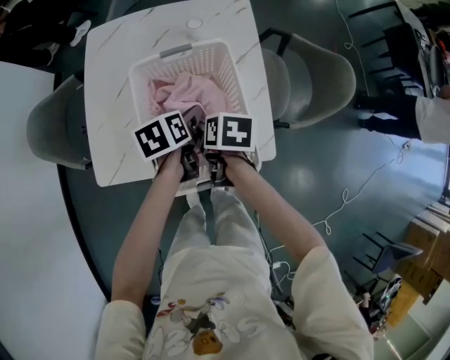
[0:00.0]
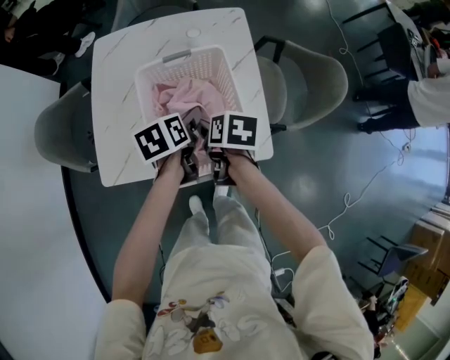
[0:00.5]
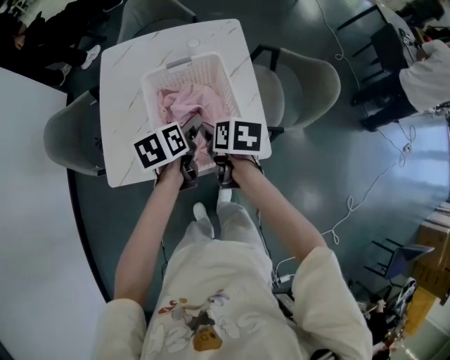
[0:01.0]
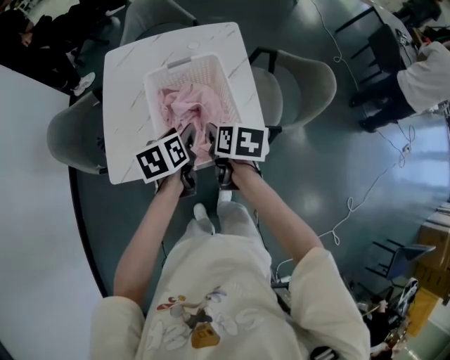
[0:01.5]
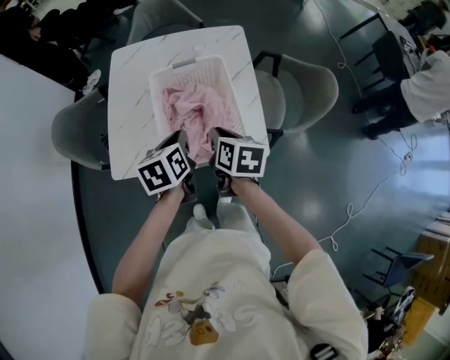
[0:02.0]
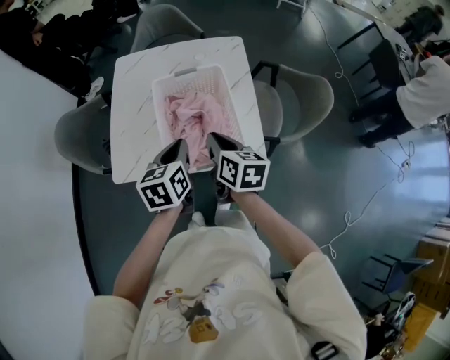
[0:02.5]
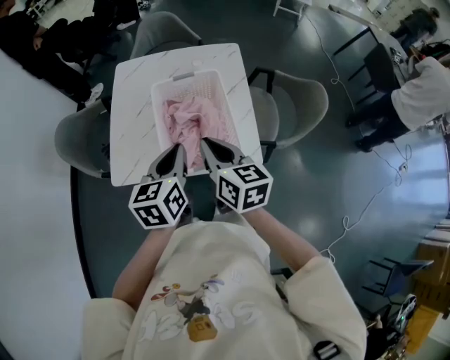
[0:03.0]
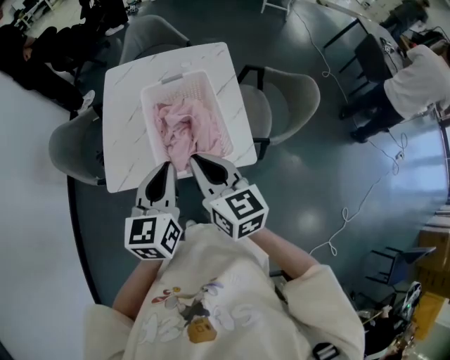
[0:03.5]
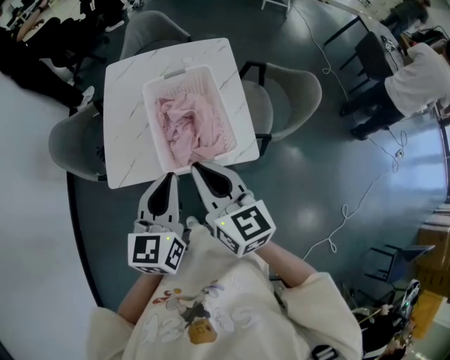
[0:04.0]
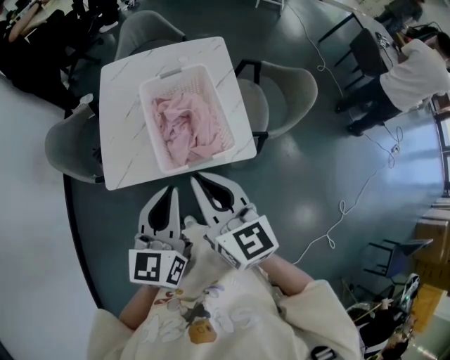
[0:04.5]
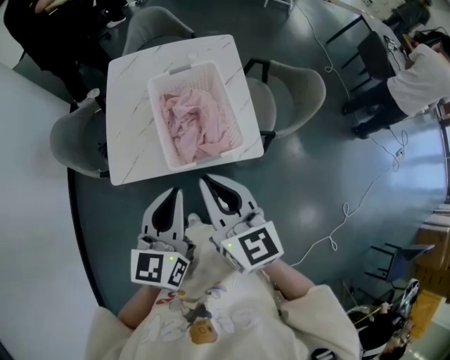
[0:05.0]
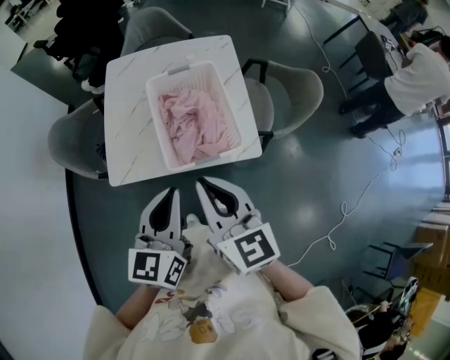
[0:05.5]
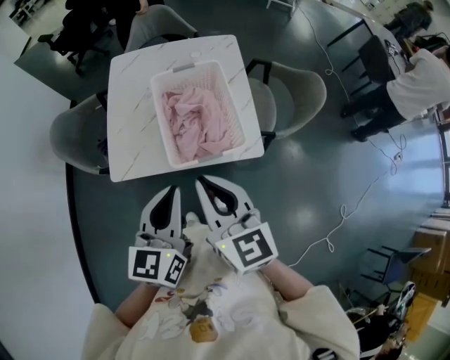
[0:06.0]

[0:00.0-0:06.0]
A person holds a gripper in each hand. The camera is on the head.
0:00.0 to 0:02.0: The grippers both shift upward and backward by about 15 cm. The right gripper changes its angle by roughly 20 degrees, and closes up. The left gripper closes its fingers.
0:02.0 to 0:04.0: The two grippers go some 20 cm upward and backward. The left gripper turns by about 30 degrees. Meanwhile the right gripper swivels approximately 40 degrees.
0:04.0 to 0:06.0: The grippers make only small movements.

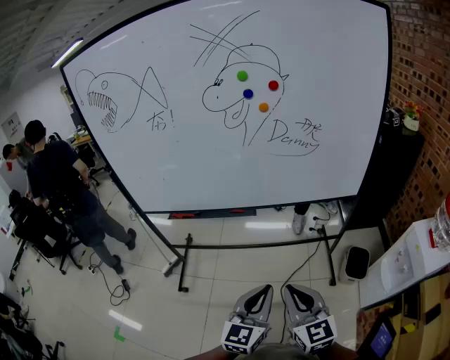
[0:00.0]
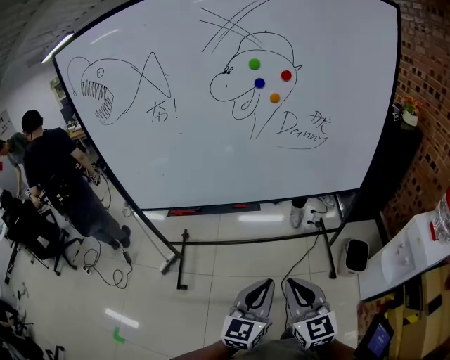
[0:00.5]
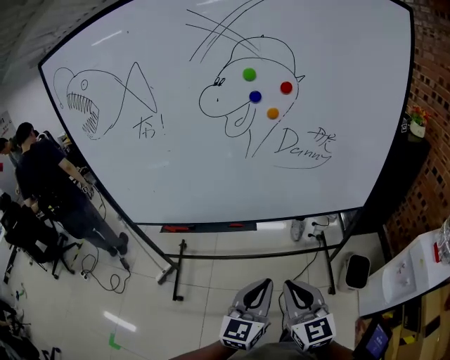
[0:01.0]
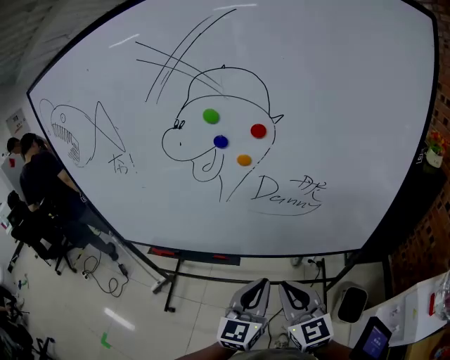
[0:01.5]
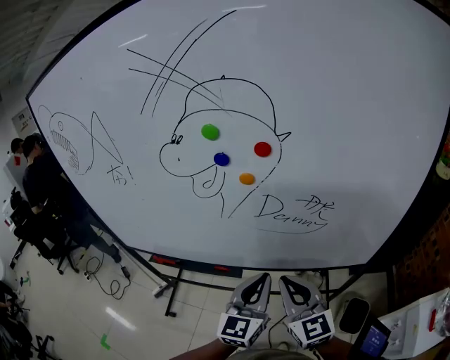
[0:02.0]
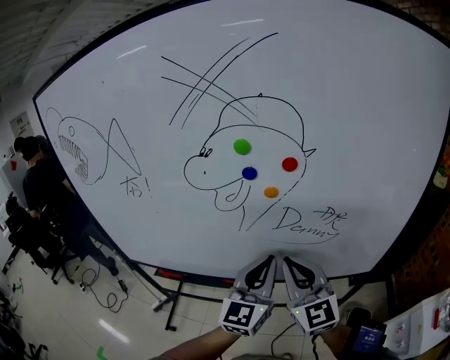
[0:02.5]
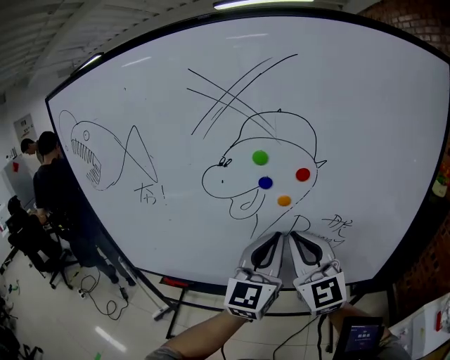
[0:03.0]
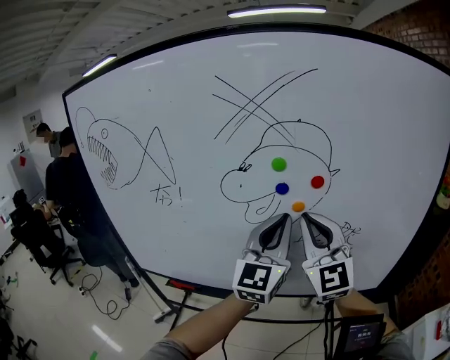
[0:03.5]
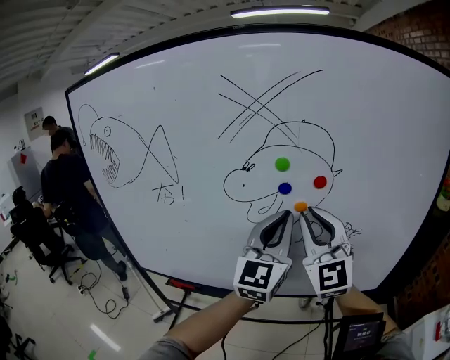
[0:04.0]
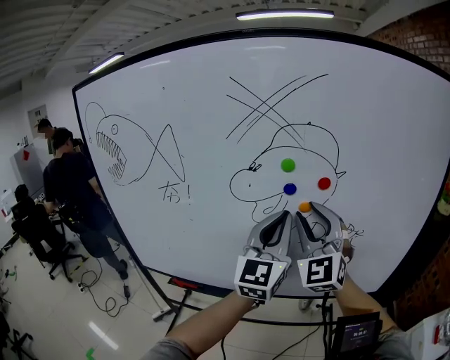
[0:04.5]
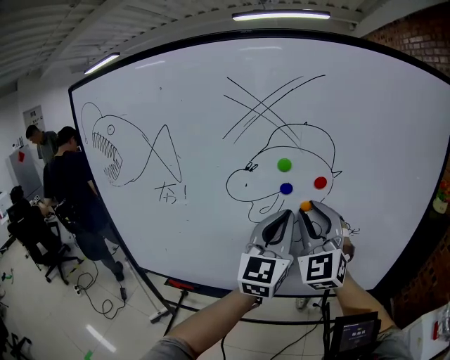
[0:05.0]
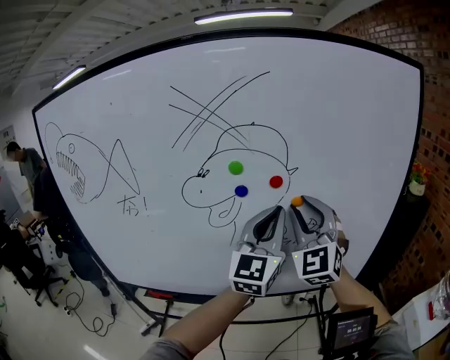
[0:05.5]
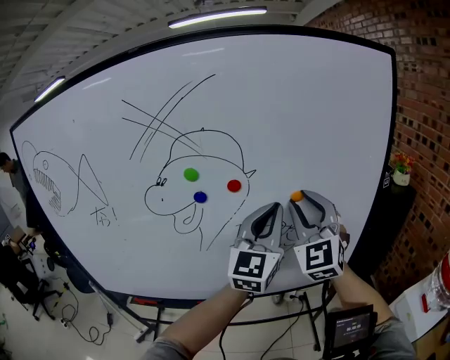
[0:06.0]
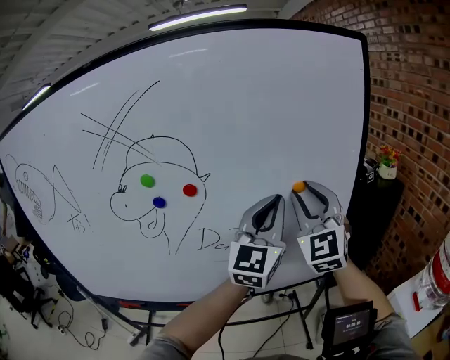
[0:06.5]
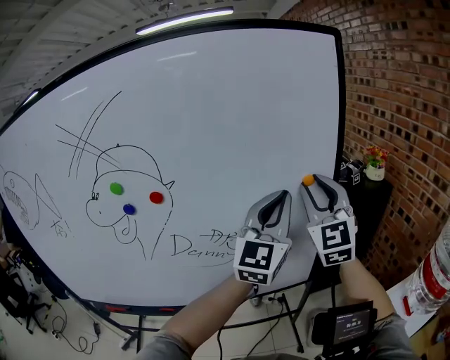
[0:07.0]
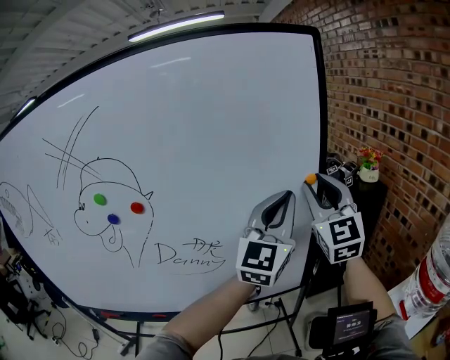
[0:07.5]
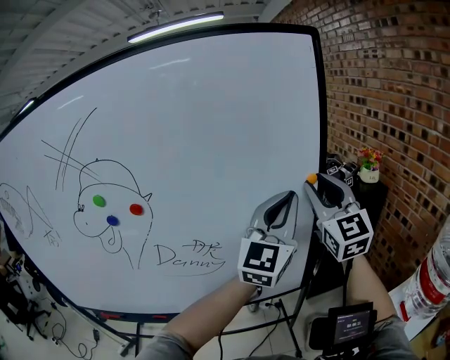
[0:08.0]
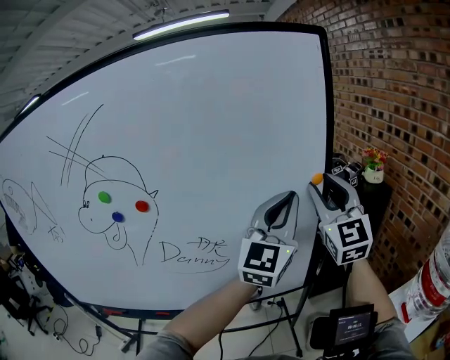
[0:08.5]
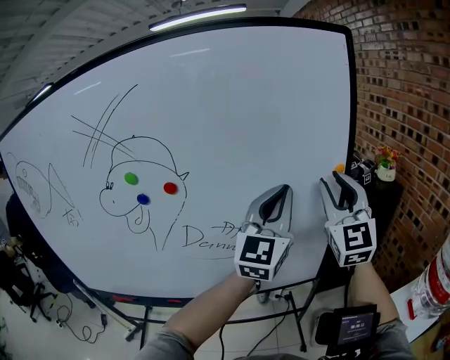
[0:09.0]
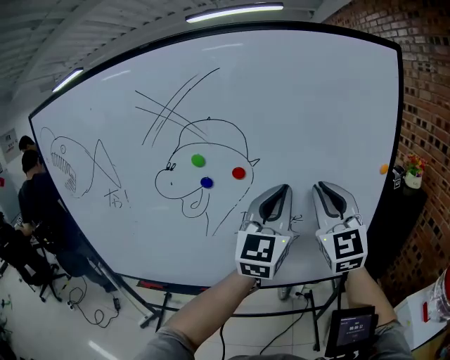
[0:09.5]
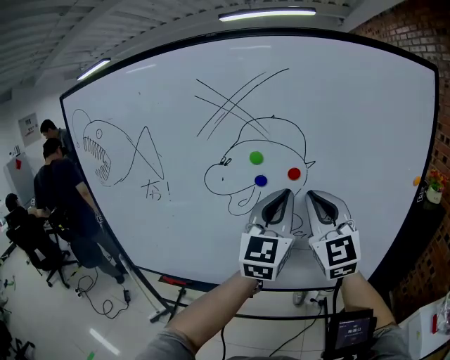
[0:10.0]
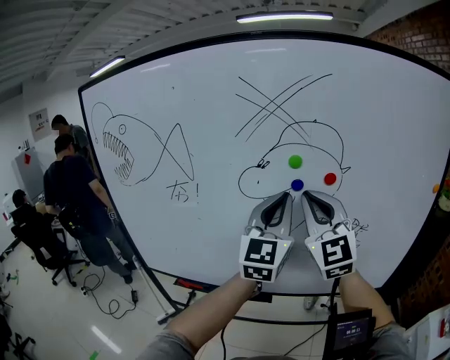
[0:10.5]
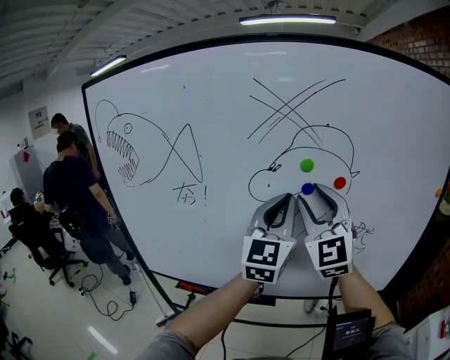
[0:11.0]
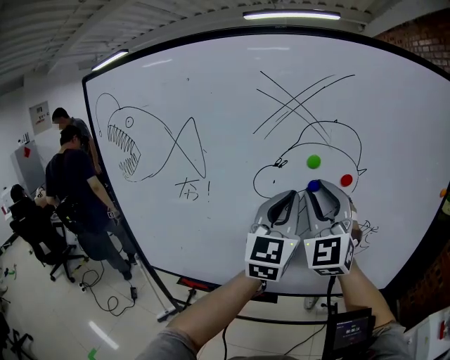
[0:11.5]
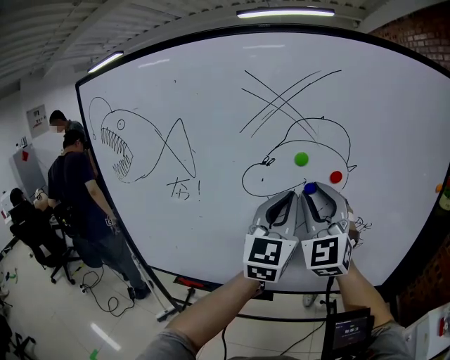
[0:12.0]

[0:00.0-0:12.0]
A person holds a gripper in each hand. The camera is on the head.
0:00.0 to 0:02.0: Both grippers travel together forward, some 35 cm.
0:02.0 to 0:04.0: Both grippers travel together upward, about 20 cm. The left gripper rotates roughly 20 degrees, while the right gripper rotates roughly 40 degrees.
0:04.0 to 0:06.0: Both grippers move to the right, roughly 15 cm. The right gripper turns by roughly 20 degrees.
0:06.0 to 0:08.0: The grippers both shift to the right by some 25 cm.
0:08.0 to 0:10.0: The grippers both shift to the left by some 35 cm. The right gripper closes up; the left gripper swivels about 20 degrees.
0:10.0 to 0:12.0: The two grippers go some 10 cm to the left. The right gripper opens up.

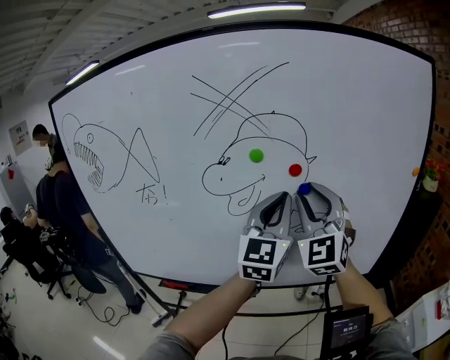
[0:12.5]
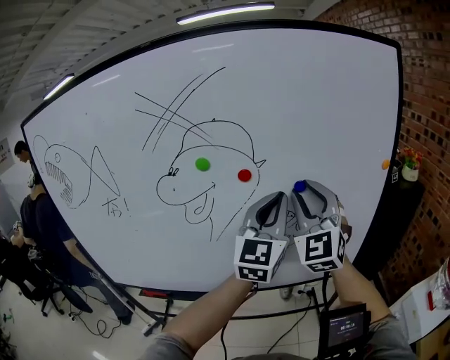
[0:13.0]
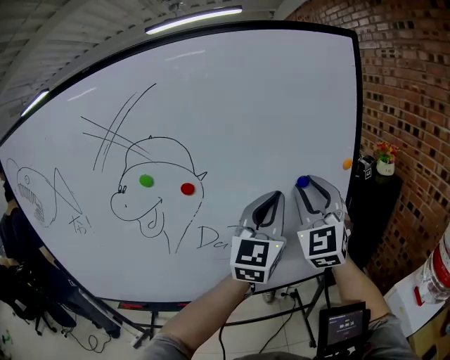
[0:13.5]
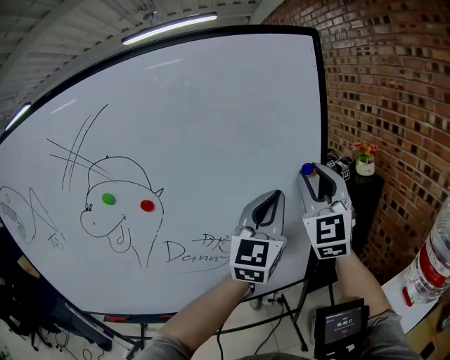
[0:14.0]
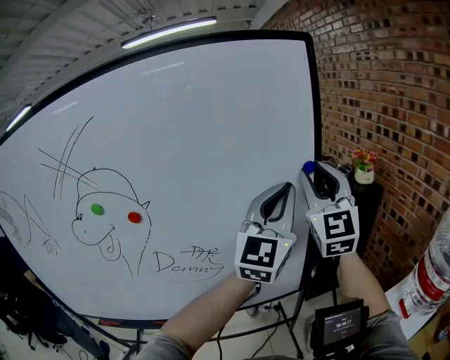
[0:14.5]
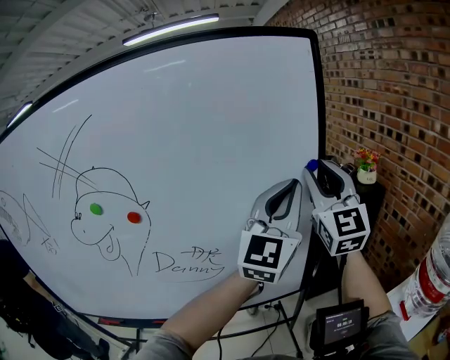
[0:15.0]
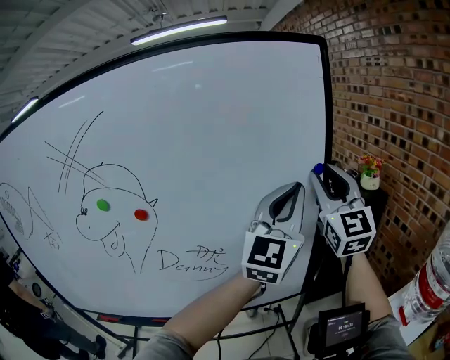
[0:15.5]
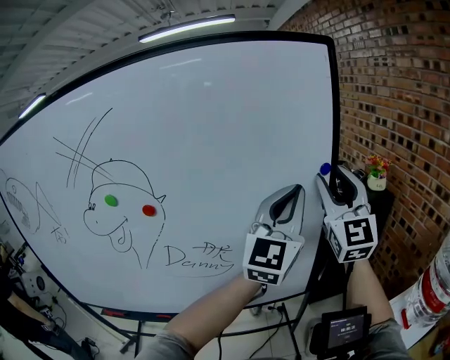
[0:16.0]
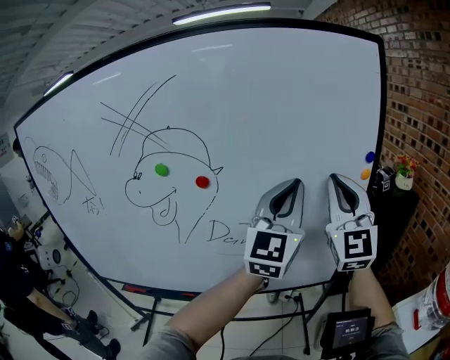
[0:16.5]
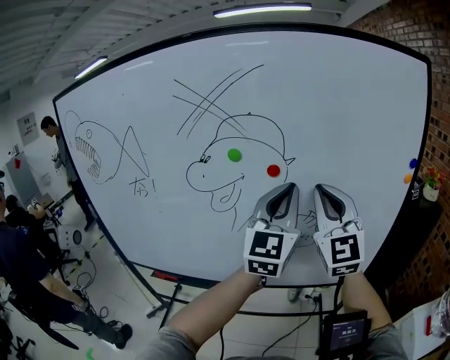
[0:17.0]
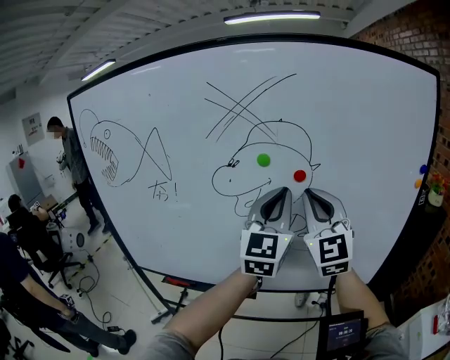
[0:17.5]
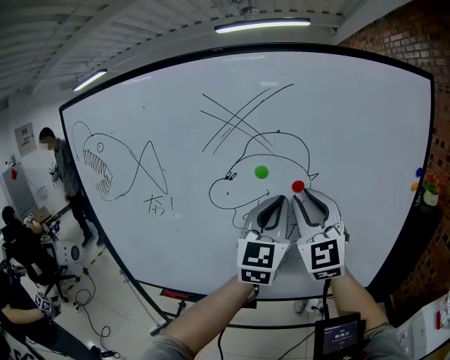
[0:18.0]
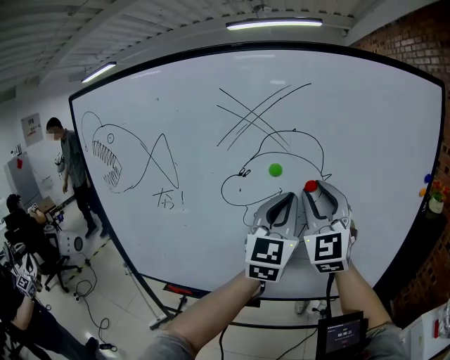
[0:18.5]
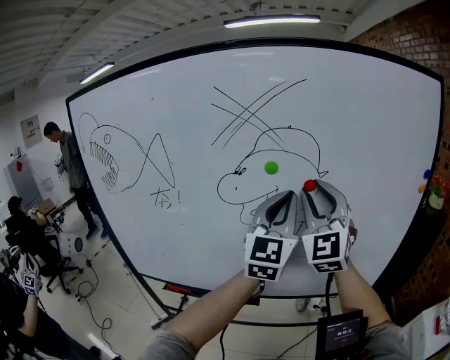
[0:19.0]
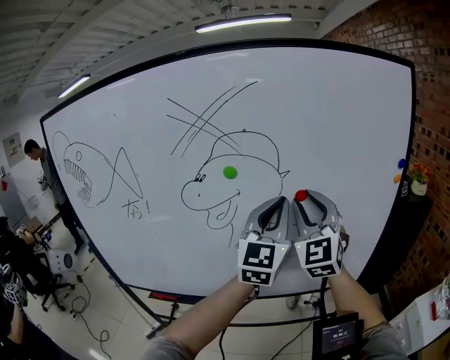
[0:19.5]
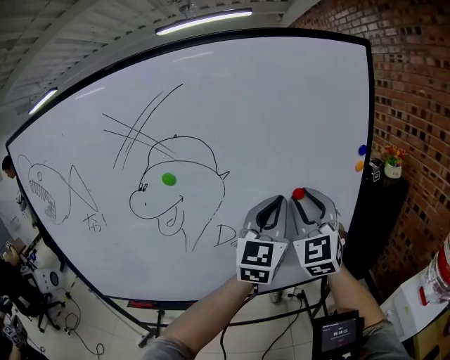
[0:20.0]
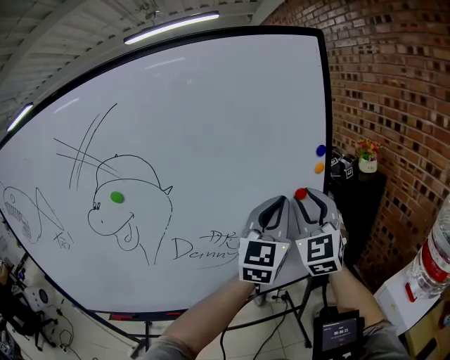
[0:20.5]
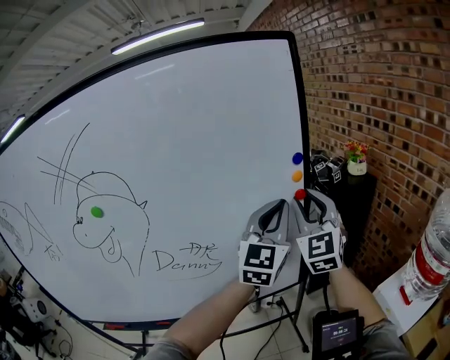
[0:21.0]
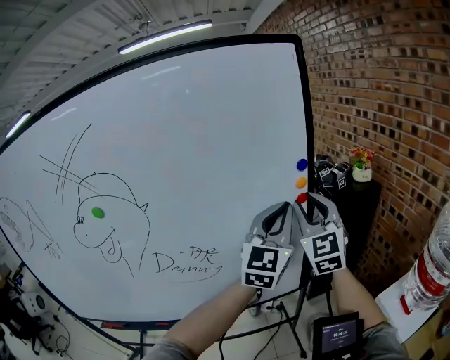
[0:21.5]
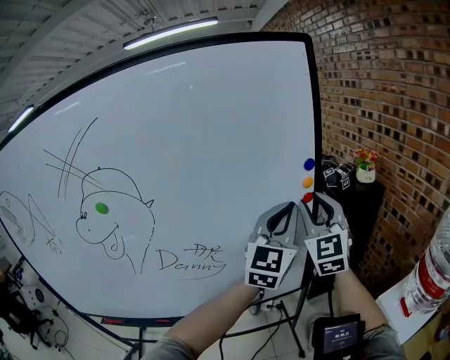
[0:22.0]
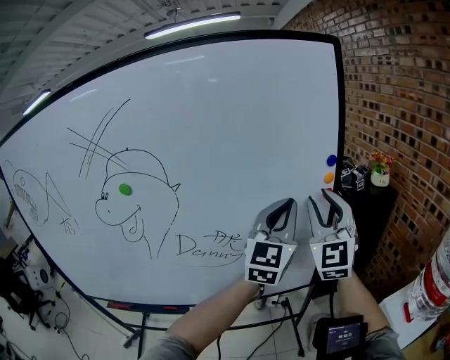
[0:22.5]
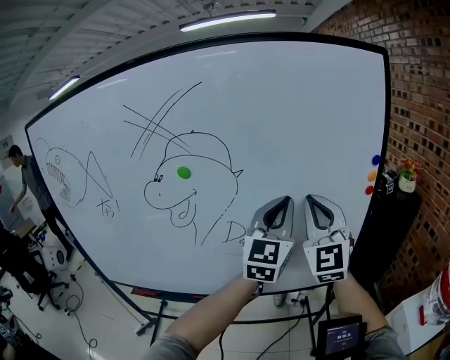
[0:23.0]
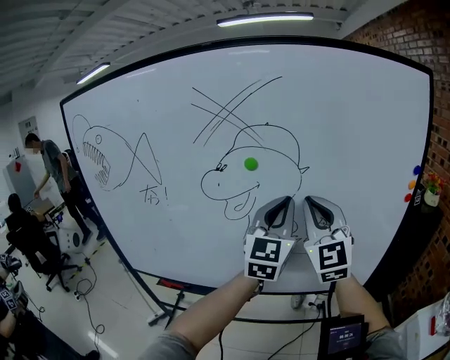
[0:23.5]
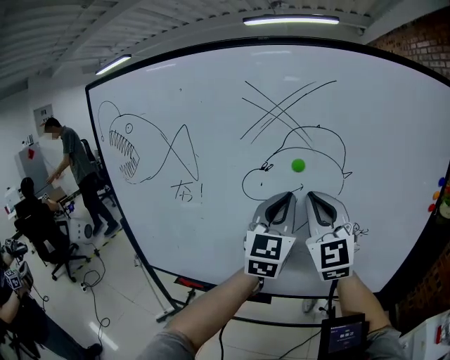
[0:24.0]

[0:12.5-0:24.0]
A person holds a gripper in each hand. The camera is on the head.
0:12.5 to 0:14.5: The two grippers go some 35 cm to the right. The left gripper turns by some 20 degrees. The right gripper swivels approximately 20 degrees.
0:14.5 to 0:16.5: The left gripper shifts about 10 cm to the left. The right gripper moves to the left and backward, some 10 cm, and closes its fingers.
0:16.5 to 0:18.5: The grippers both shift to the left by about 25 cm. The right gripper opens its fingers.
0:18.5 to 0:20.0: The two grippers go about 20 cm to the right.
0:20.0 to 0:22.0: The two grippers go about 20 cm to the right and forward.
0:22.0 to 0:24.0: The two grippers travel together, approximately 50 cm. The right gripper rotates some 30 degrees, and closes, while the left gripper changes its angle by roughly 30 degrees.
